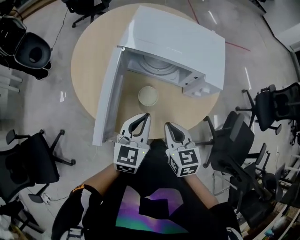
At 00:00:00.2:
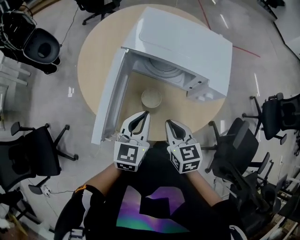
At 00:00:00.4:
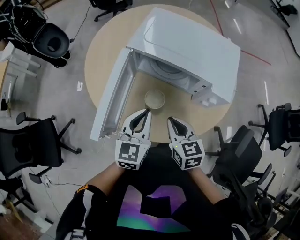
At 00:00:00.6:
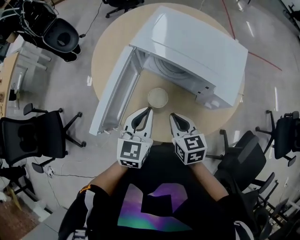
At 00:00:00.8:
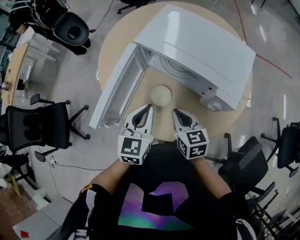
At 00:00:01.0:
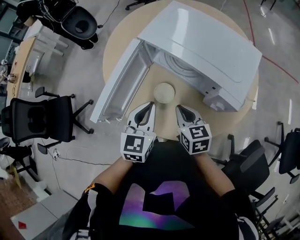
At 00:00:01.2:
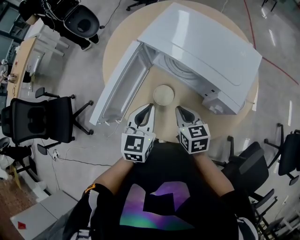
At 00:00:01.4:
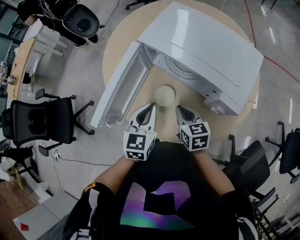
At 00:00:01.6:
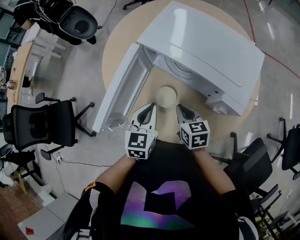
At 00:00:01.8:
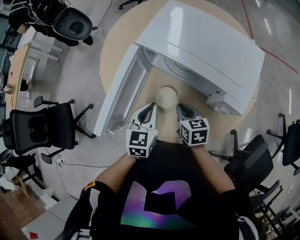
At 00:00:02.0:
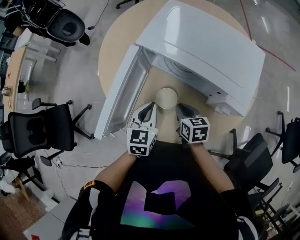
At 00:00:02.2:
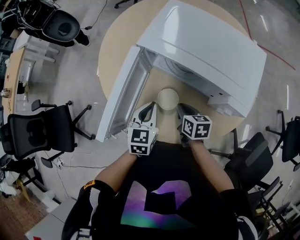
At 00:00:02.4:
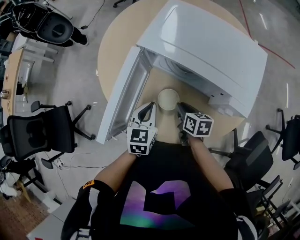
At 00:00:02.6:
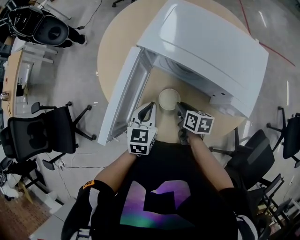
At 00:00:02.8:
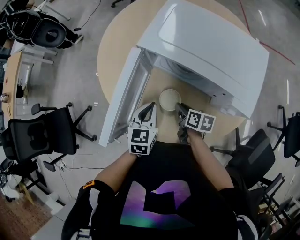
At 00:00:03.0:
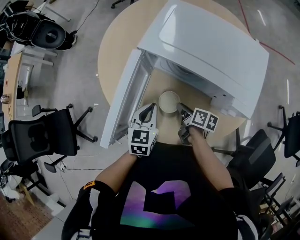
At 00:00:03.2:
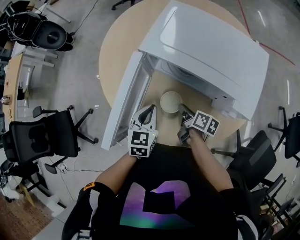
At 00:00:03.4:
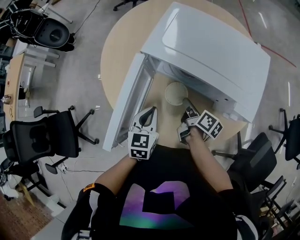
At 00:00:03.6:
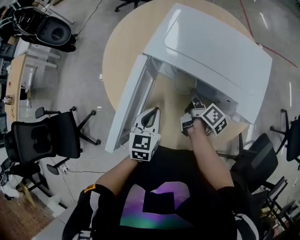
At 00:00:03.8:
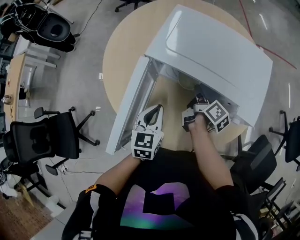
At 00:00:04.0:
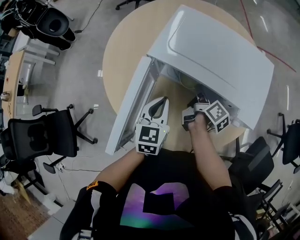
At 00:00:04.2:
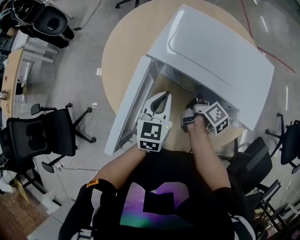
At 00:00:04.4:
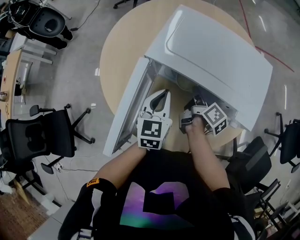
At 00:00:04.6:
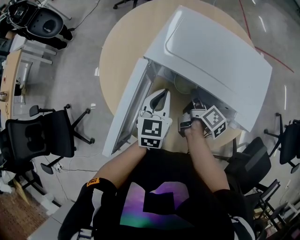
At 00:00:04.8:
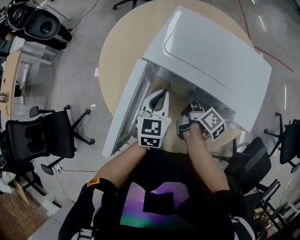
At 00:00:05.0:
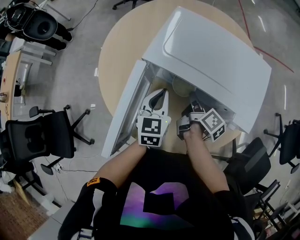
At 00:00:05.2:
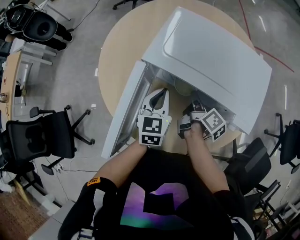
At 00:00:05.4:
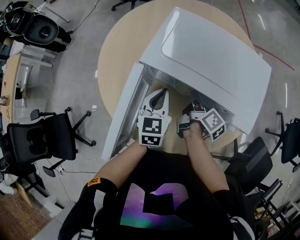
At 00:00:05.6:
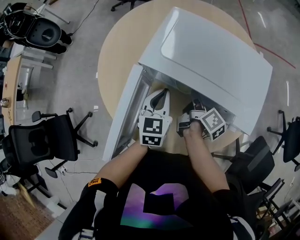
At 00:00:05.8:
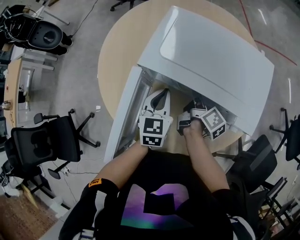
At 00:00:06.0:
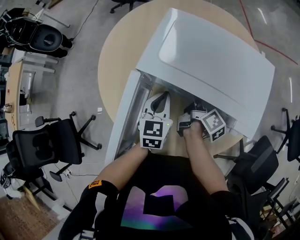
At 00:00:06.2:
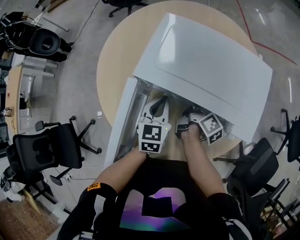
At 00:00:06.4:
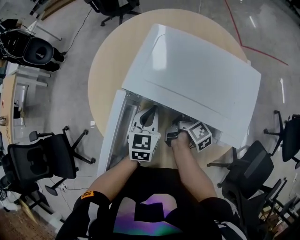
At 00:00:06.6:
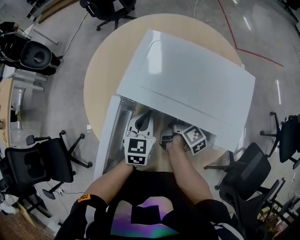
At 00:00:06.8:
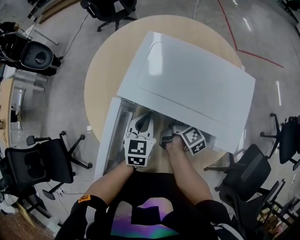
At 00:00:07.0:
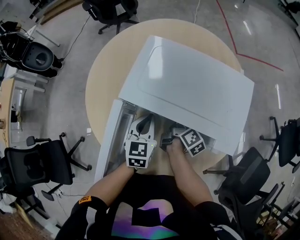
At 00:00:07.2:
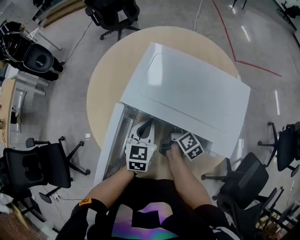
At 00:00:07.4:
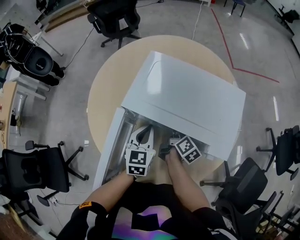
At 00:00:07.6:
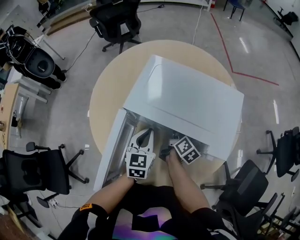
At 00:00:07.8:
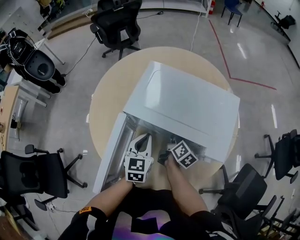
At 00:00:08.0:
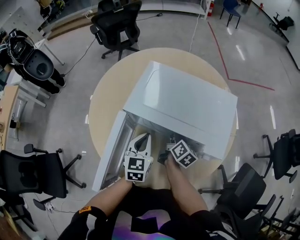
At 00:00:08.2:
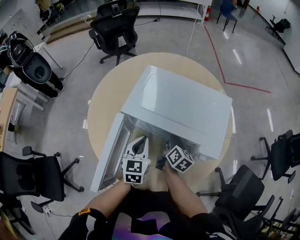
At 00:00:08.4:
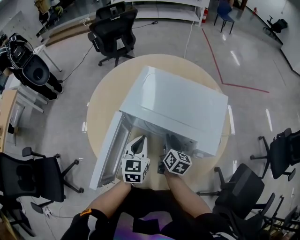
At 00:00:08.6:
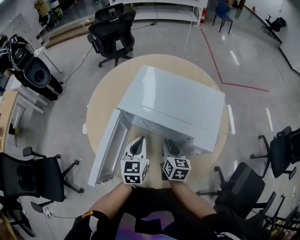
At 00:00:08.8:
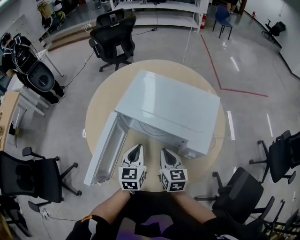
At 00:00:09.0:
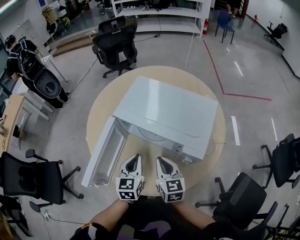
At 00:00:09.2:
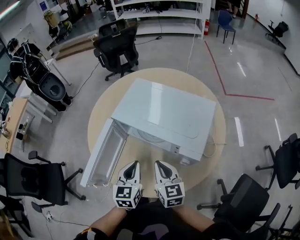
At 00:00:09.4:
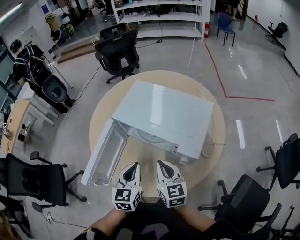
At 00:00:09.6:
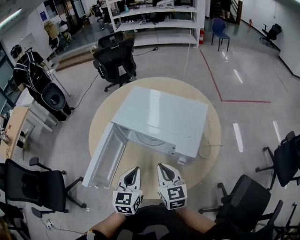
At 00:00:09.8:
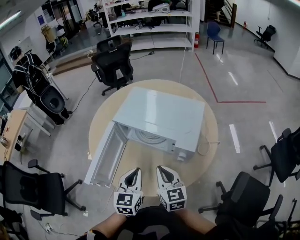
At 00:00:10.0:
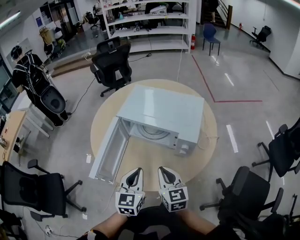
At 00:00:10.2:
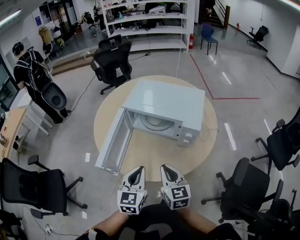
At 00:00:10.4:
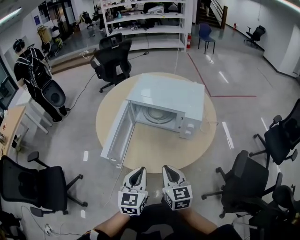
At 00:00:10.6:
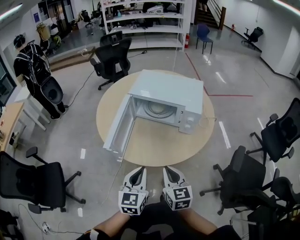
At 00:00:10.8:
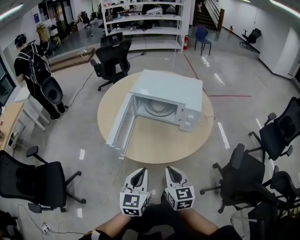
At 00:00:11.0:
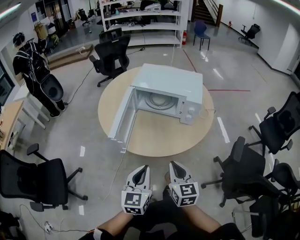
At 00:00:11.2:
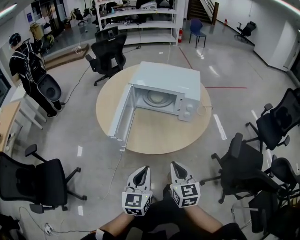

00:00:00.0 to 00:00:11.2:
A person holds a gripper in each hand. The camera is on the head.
00:00:00.0 to 00:00:01.6: The right gripper ends up roughly 15 cm from where it was, and swivels some 20 degrees. The left gripper moves about 10 cm, and changes its angle by roughly 30 degrees.
00:00:01.6 to 00:00:03.2: The right gripper heads downward, covering approximately 10 cm, and twists about 50 degrees clockwise, seen from behind. Meanwhile the left gripper ends up roughly 5 cm from where it was.
00:00:03.2 to 00:00:04.8: The left gripper shifts roughly 10 cm forward. Meanwhile the right gripper moves forward and upward, some 10 cm, and changes its angle by about 30 degrees.
00:00:04.8 to 00:00:06.4: The right gripper shifts by about 5 cm.
00:00:06.4 to 00:00:08.0: The left gripper moves roughly 5 cm; the right gripper swivels approximately 30 degrees.
00:00:08.0 to 00:00:09.6: The left gripper shifts roughly 15 cm backward, while the right gripper is displaced backward and upward by approximately 25 cm, rolls counterclockwise, seen from behind, by about 50 degrees, and closes up.
00:00:09.6 to 00:00:11.2: The grippers both shift backward by approximately 35 cm.

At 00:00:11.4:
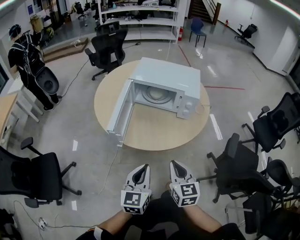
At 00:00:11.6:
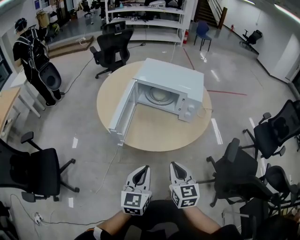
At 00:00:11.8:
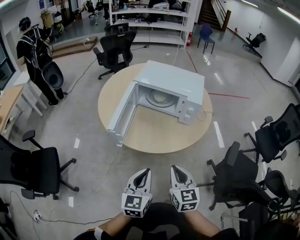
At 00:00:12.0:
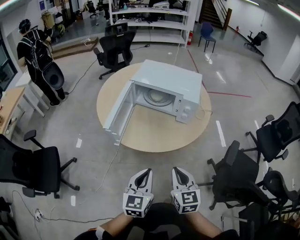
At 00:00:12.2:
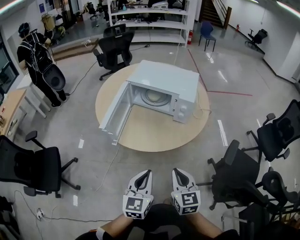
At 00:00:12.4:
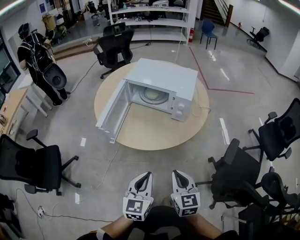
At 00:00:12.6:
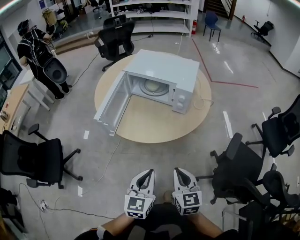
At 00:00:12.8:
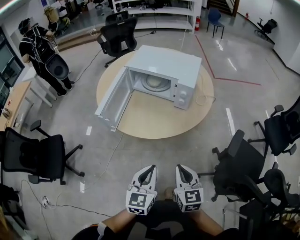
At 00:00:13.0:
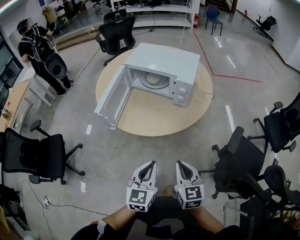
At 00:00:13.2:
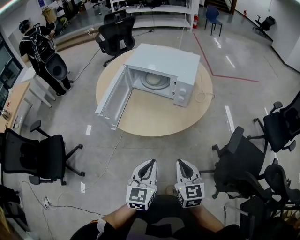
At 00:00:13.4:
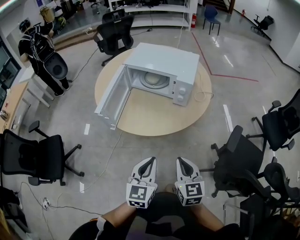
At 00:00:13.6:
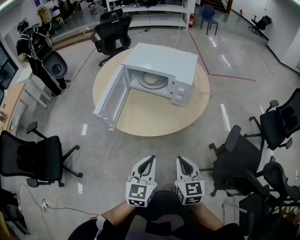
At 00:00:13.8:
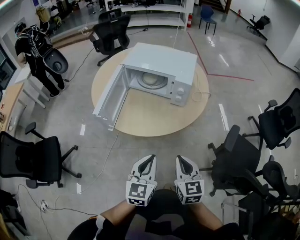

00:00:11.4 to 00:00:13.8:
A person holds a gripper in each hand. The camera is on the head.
00:00:11.4 to 00:00:12.6: Both grippers travel together to the right, some 15 cm.
00:00:12.6 to 00:00:13.8: The grippers move only a little.

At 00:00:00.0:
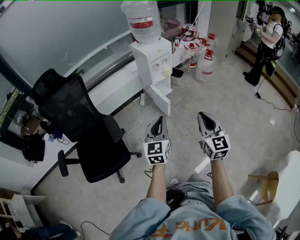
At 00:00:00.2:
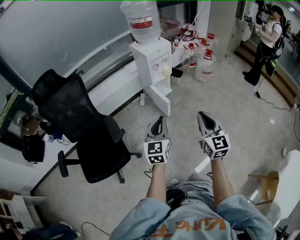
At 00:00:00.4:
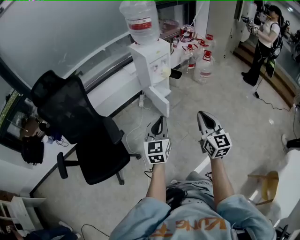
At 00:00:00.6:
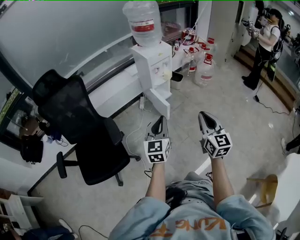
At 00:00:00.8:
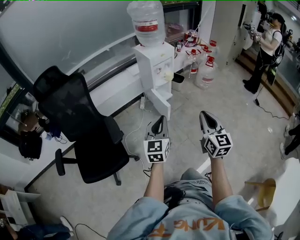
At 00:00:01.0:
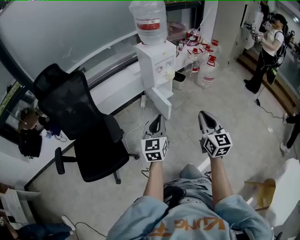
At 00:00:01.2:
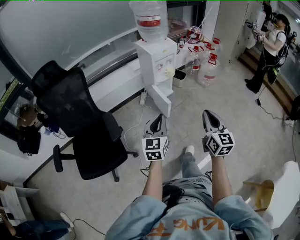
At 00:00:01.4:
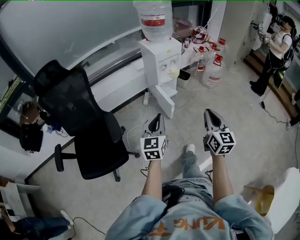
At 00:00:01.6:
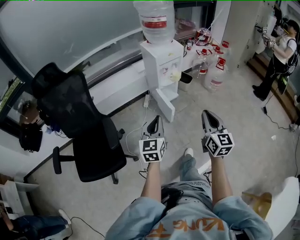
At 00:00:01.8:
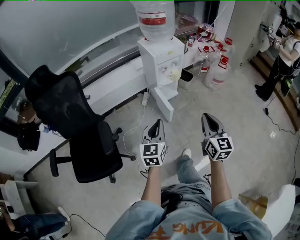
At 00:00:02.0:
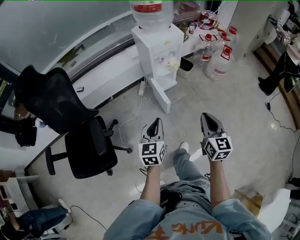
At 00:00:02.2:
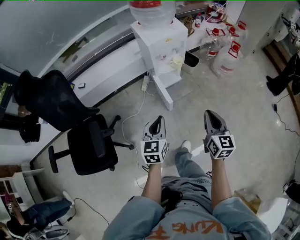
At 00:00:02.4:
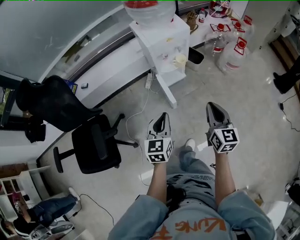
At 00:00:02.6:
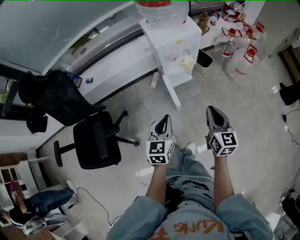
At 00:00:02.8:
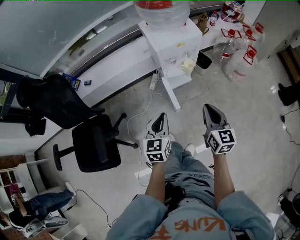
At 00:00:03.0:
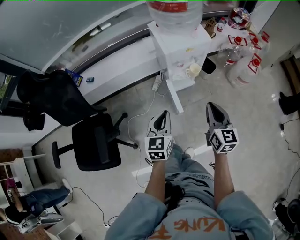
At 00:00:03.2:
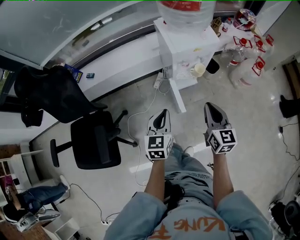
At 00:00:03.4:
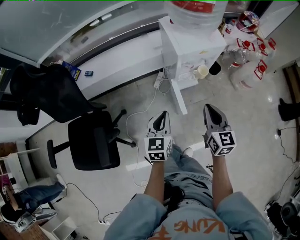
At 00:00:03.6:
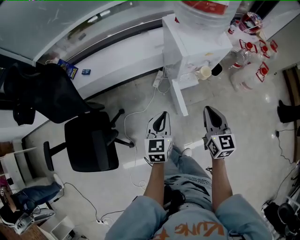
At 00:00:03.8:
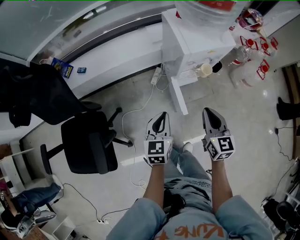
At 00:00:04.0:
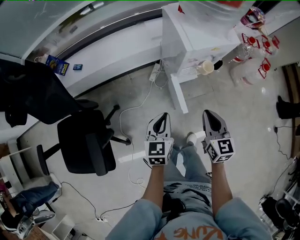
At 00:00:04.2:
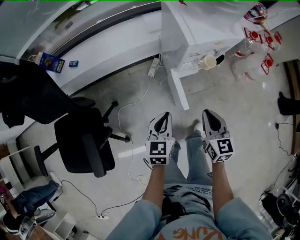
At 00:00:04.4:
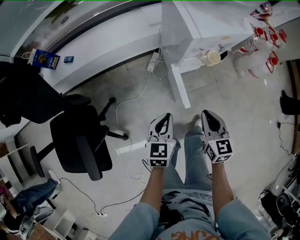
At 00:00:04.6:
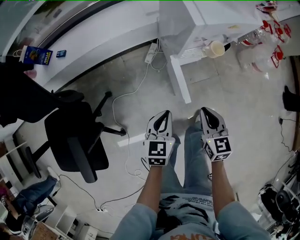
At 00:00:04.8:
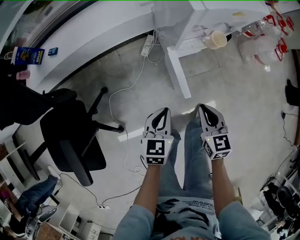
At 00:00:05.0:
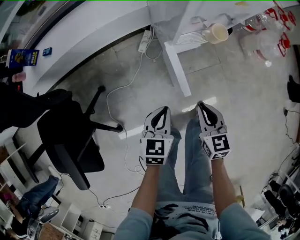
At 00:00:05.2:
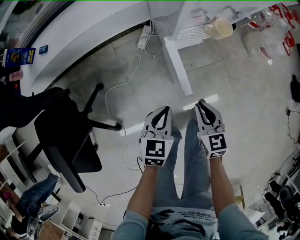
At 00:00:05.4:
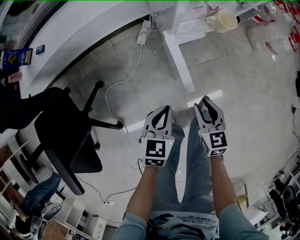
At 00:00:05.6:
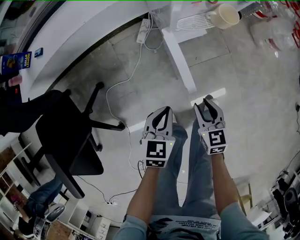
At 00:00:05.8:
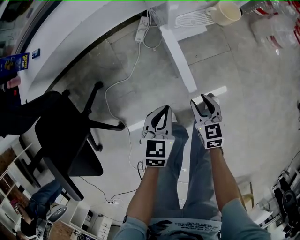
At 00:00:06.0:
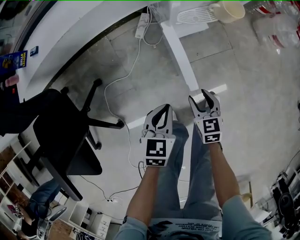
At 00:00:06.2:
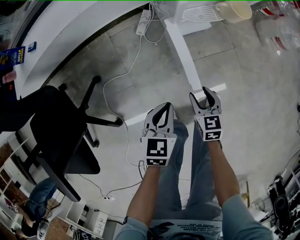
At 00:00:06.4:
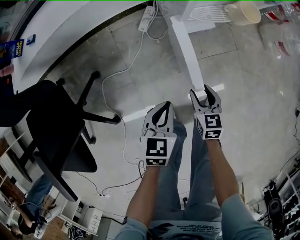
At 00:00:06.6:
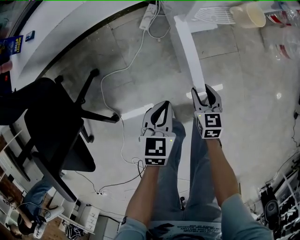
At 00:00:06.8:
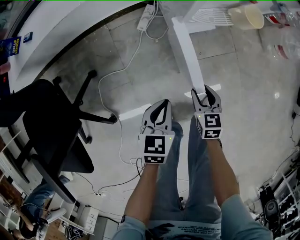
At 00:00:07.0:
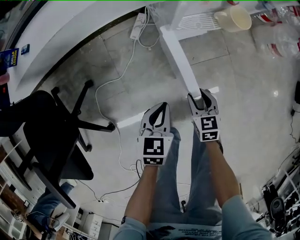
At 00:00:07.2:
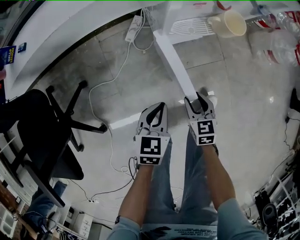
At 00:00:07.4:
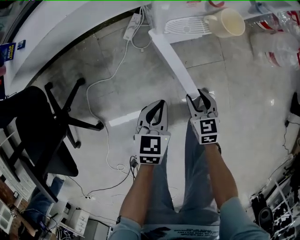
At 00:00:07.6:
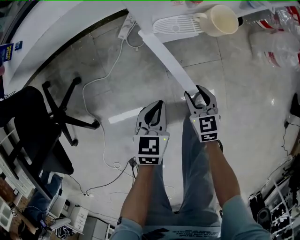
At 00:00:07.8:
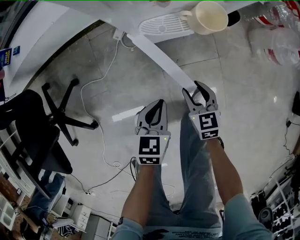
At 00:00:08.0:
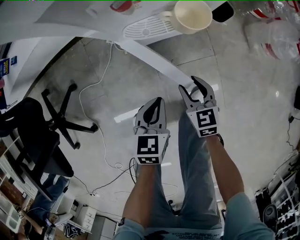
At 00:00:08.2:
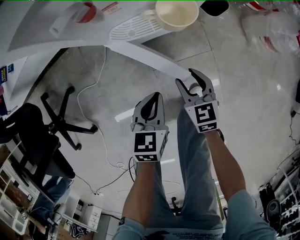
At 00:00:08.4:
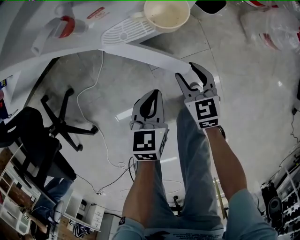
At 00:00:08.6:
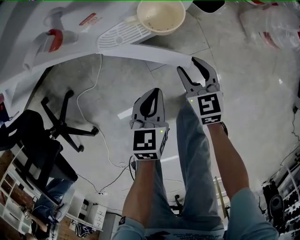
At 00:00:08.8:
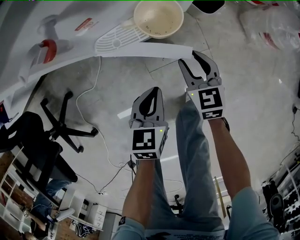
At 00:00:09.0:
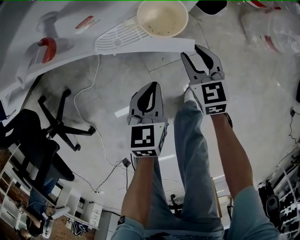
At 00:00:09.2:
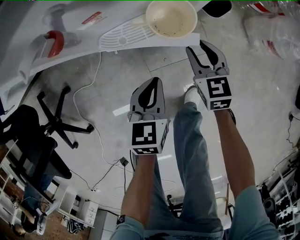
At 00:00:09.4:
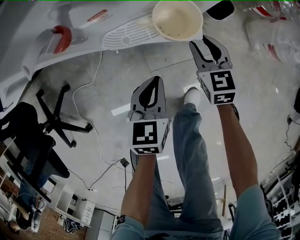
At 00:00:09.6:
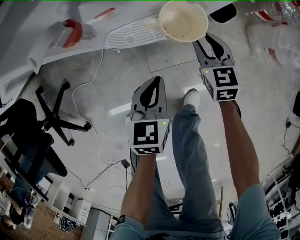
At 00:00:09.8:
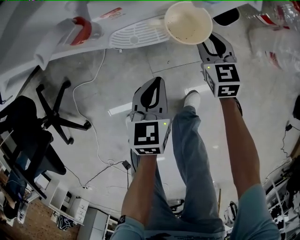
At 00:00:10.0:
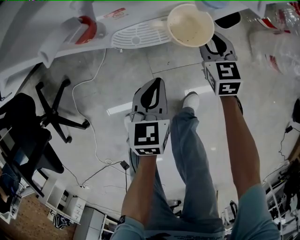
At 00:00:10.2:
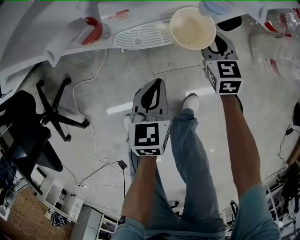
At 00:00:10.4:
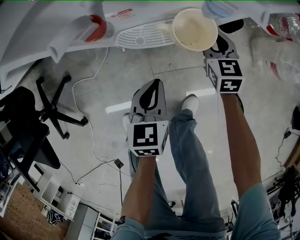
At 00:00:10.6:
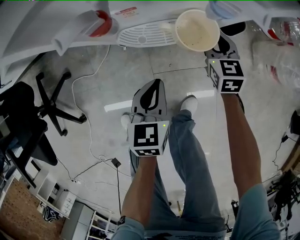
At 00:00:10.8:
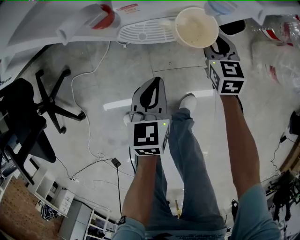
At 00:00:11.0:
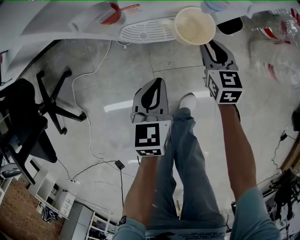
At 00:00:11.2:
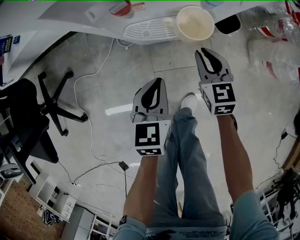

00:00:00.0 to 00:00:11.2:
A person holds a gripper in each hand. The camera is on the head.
00:00:00.0 to 00:00:01.6: Both grippers move forward, about 10 cm.
00:00:01.6 to 00:00:03.2: The two grippers go some 30 cm forward. The right gripper changes its angle by some 20 degrees.
00:00:03.2 to 00:00:04.8: Both grippers move downward, approximately 25 cm.
00:00:04.8 to 00:00:06.4: The right gripper is displaced downward by some 25 cm, and opens its fingers. The left gripper shifts some 15 cm downward.
00:00:06.4 to 00:00:08.0: The grippers both shift to the right and forward by roughly 20 cm.
00:00:08.0 to 00:00:09.6: The left gripper goes about 10 cm forward. Meanwhile the right gripper goes some 20 cm forward and to the right.
00:00:09.6 to 00:00:11.2: The right gripper shifts by approximately 5 cm, while the left gripper moves upward, some 5 cm.
